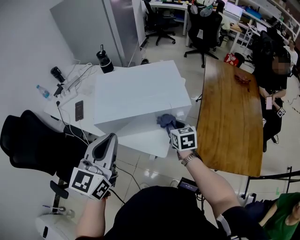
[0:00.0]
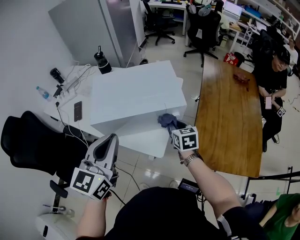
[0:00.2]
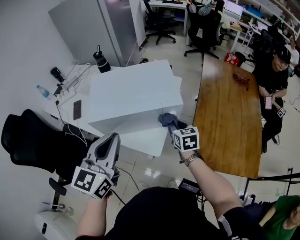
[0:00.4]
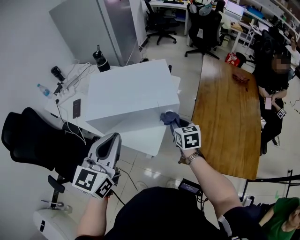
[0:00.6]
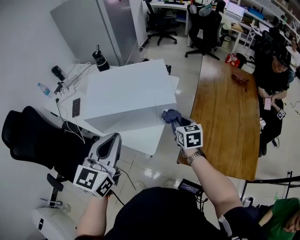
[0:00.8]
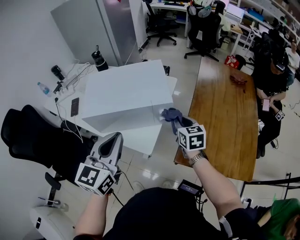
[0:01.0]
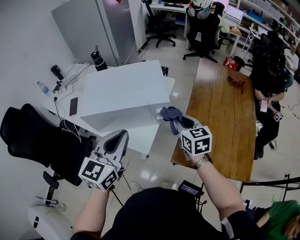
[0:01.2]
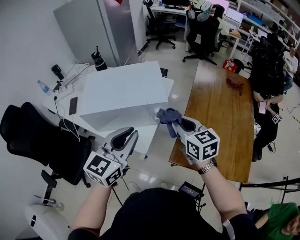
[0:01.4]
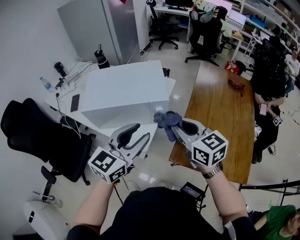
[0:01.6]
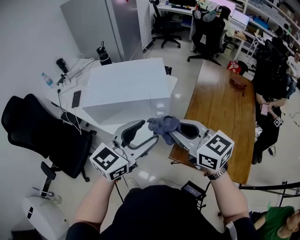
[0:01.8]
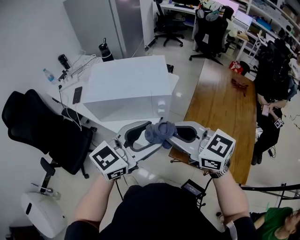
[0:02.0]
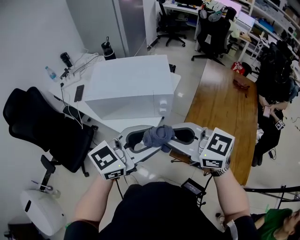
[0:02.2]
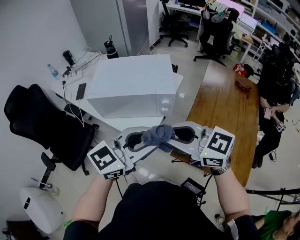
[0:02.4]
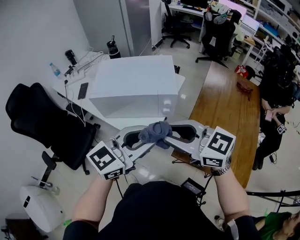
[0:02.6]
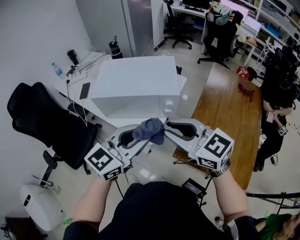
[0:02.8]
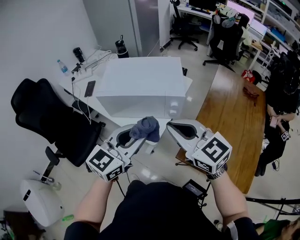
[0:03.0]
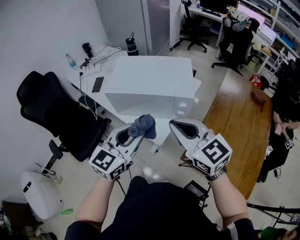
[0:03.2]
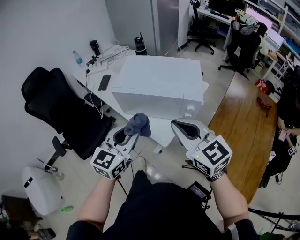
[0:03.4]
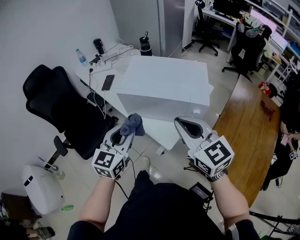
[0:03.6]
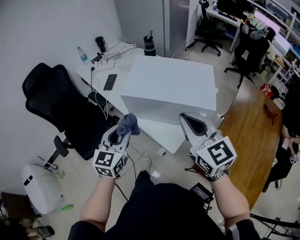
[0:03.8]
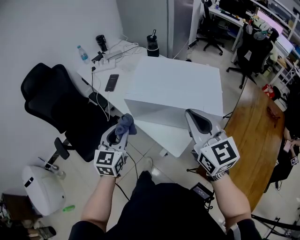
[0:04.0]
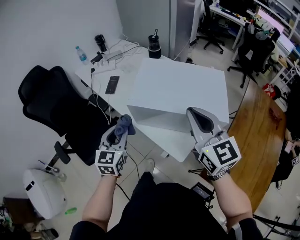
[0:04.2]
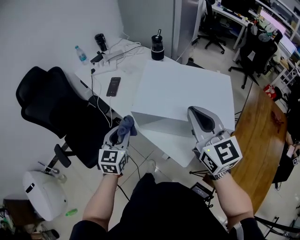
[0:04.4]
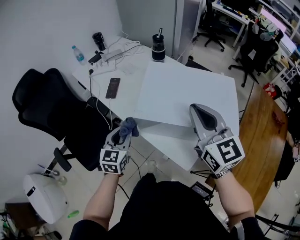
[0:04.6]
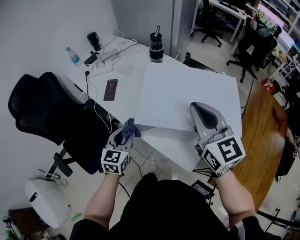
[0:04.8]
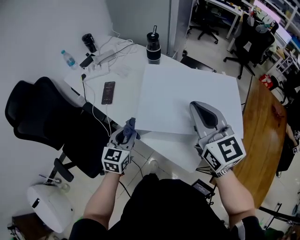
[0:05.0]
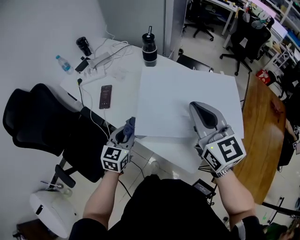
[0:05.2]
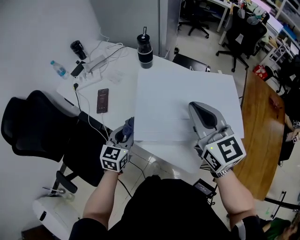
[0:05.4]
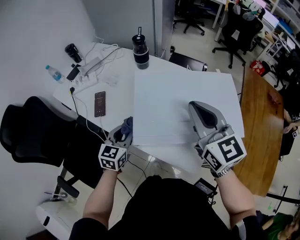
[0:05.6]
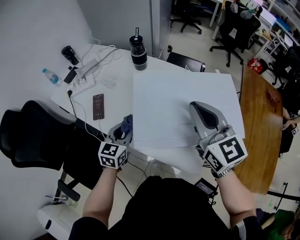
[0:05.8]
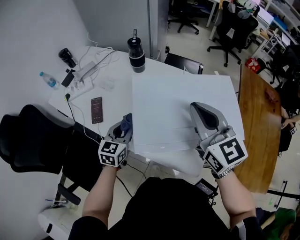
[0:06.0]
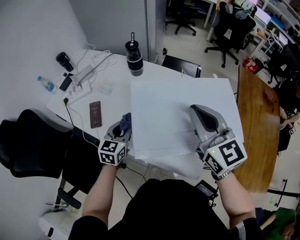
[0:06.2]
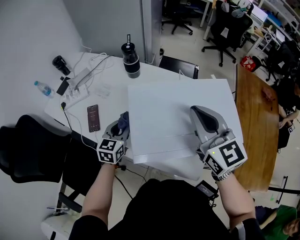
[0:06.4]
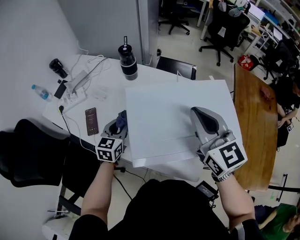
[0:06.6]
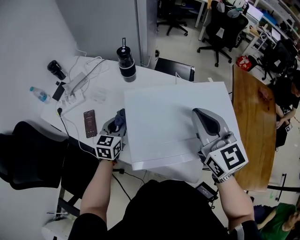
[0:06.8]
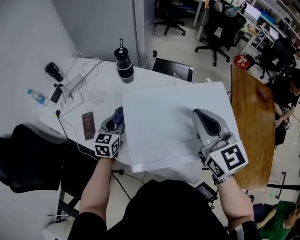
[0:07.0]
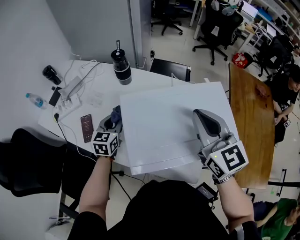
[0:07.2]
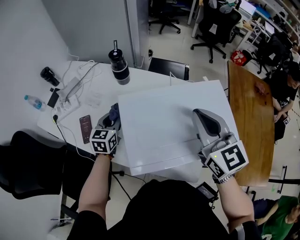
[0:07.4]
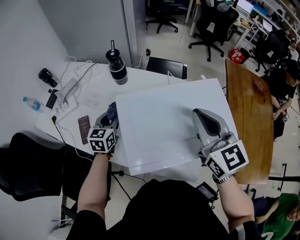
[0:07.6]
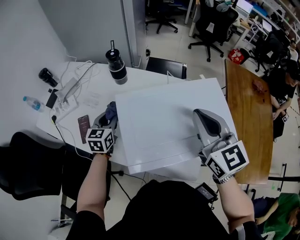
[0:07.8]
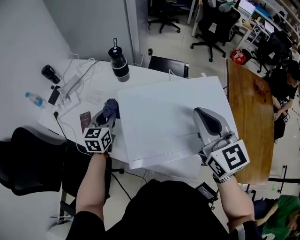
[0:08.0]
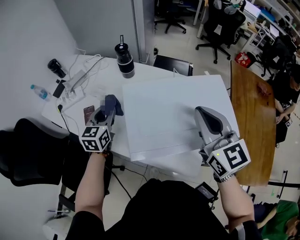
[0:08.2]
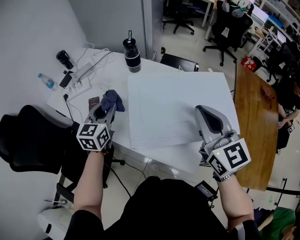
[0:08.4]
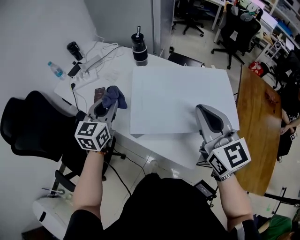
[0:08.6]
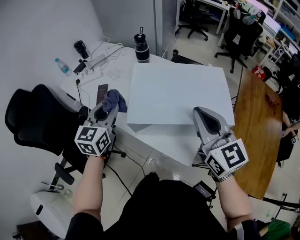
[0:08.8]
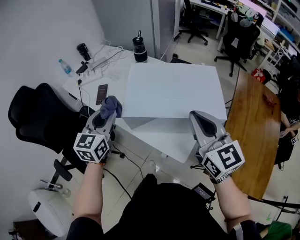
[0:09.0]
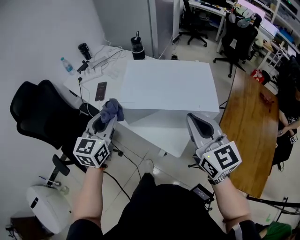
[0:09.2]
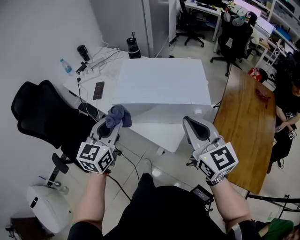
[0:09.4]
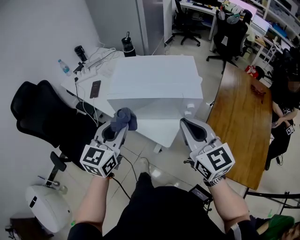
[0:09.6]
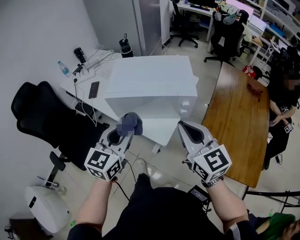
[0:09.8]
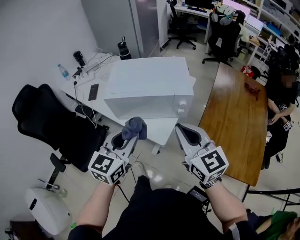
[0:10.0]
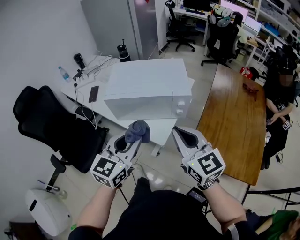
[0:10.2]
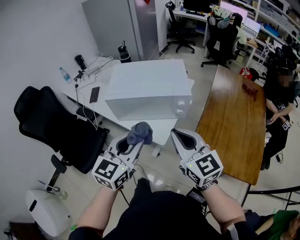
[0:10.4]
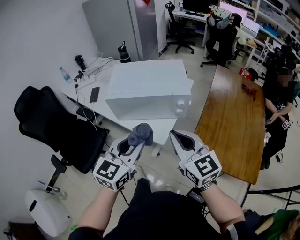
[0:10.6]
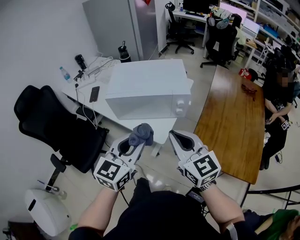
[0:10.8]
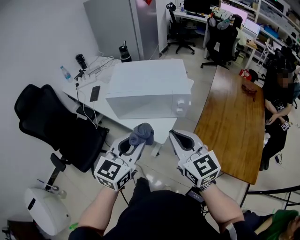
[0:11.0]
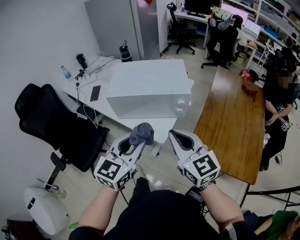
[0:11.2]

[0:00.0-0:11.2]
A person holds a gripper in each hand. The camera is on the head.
0.0 to 1.6 s: The left gripper goes about 20 cm to the right, and opens, while the right gripper moves upward, backward and to the right, roughly 20 cm, and changes its angle by some 30 degrees.
1.6 to 3.2 s: The right gripper moves some 10 cm, and turns by about 20 degrees. Meanwhile the left gripper moves roughly 10 cm, and opens, then closes again.
3.2 to 4.8 s: The left gripper heads forward, to the left and downward, covering some 40 cm, and turns by some 20 degrees; the right gripper heads forward, covering some 25 cm.
4.8 to 6.4 s: The left gripper heads forward, covering approximately 20 cm. Meanwhile the right gripper is displaced forward by about 10 cm.
6.4 to 8.0 s: The left gripper goes some 5 cm forward.
8.0 to 9.6 s: The right gripper heads backward, covering approximately 30 cm. The left gripper travels backward and upward by about 40 cm.
9.6 to 11.2 s: The left gripper heads backward and to the right, covering roughly 15 cm; the right gripper shifts roughly 10 cm backward.

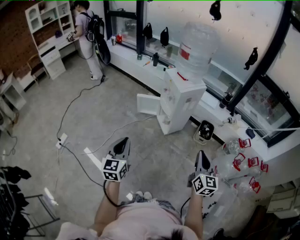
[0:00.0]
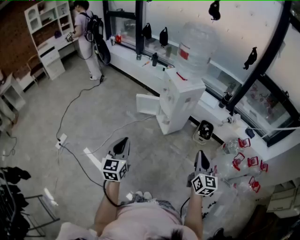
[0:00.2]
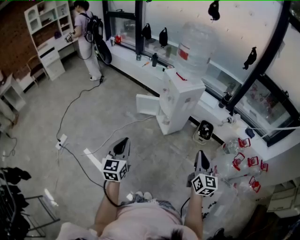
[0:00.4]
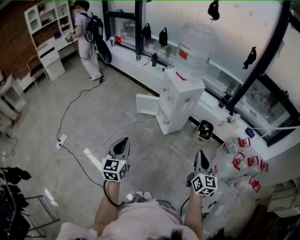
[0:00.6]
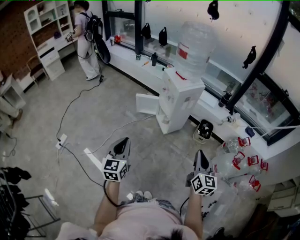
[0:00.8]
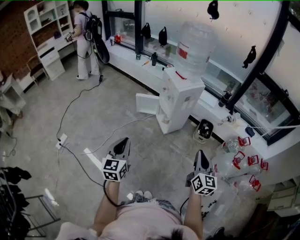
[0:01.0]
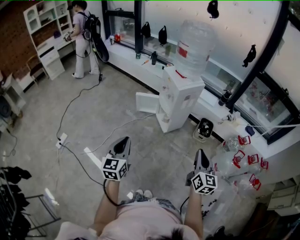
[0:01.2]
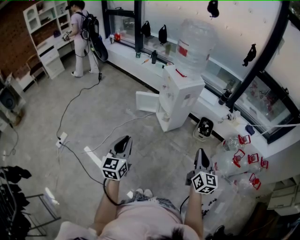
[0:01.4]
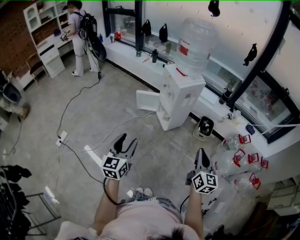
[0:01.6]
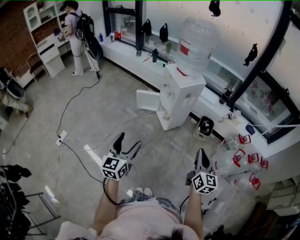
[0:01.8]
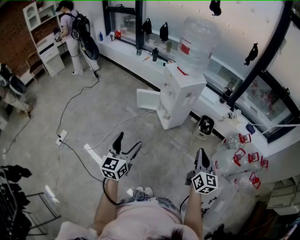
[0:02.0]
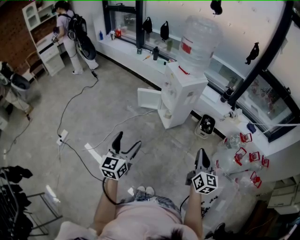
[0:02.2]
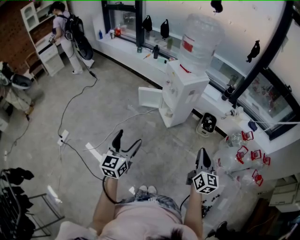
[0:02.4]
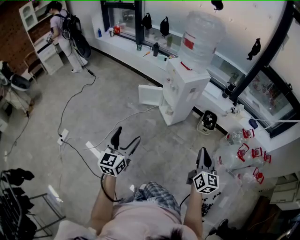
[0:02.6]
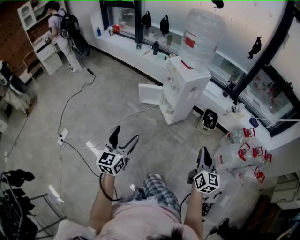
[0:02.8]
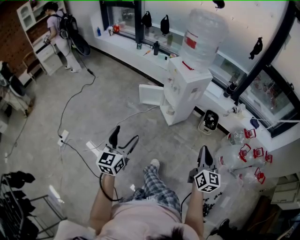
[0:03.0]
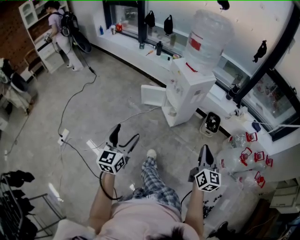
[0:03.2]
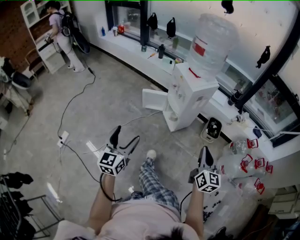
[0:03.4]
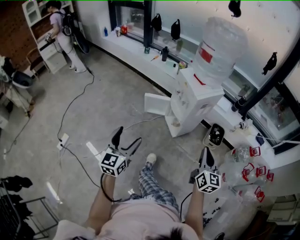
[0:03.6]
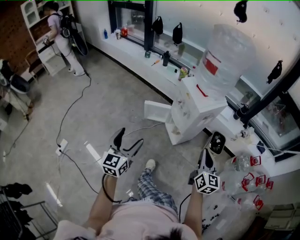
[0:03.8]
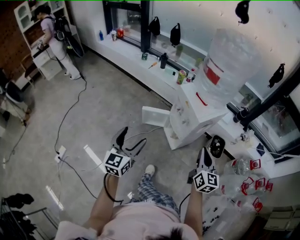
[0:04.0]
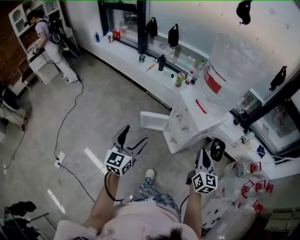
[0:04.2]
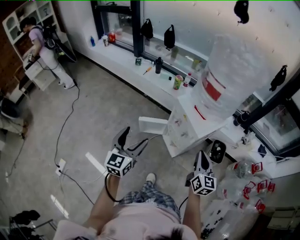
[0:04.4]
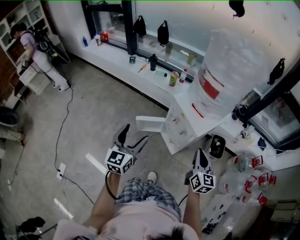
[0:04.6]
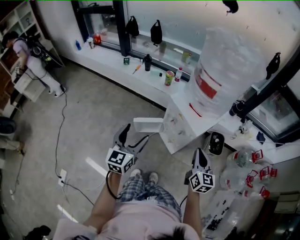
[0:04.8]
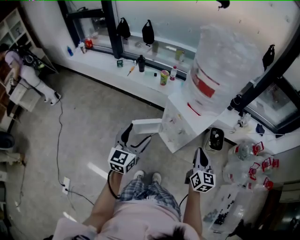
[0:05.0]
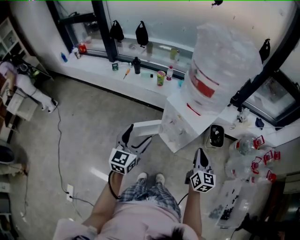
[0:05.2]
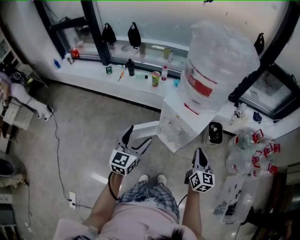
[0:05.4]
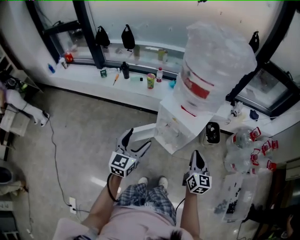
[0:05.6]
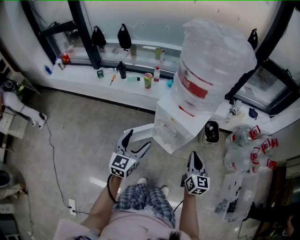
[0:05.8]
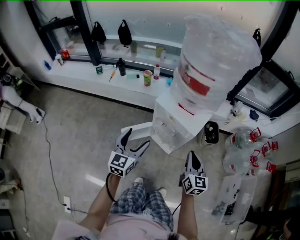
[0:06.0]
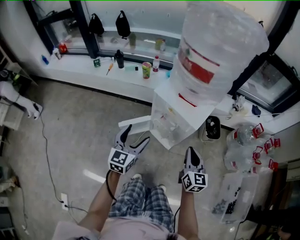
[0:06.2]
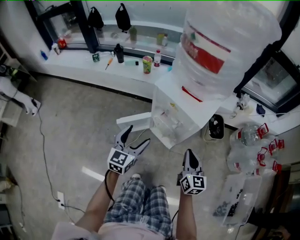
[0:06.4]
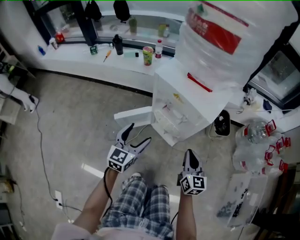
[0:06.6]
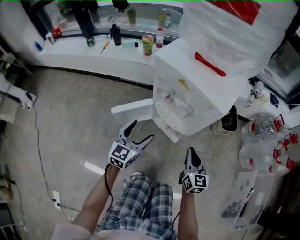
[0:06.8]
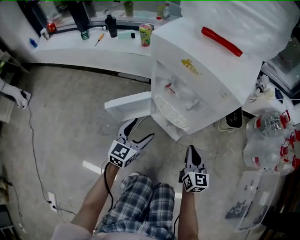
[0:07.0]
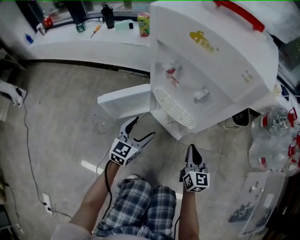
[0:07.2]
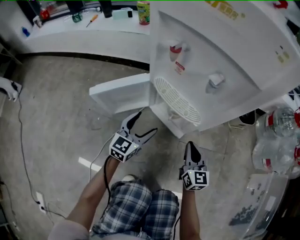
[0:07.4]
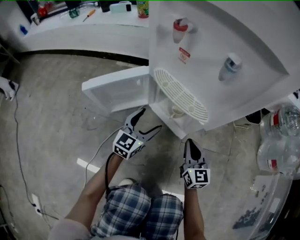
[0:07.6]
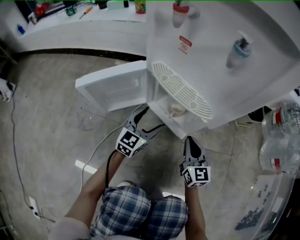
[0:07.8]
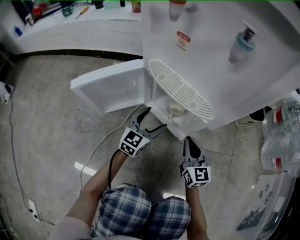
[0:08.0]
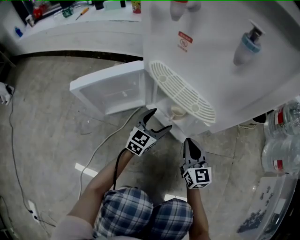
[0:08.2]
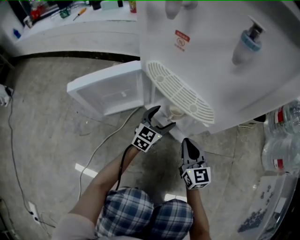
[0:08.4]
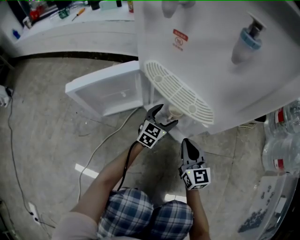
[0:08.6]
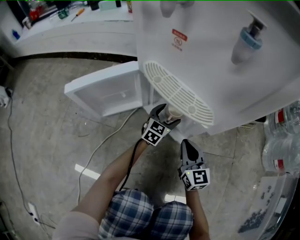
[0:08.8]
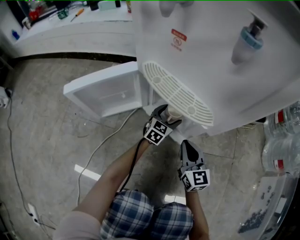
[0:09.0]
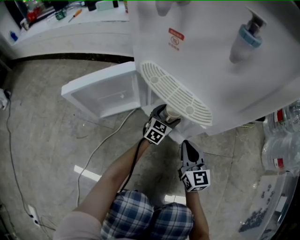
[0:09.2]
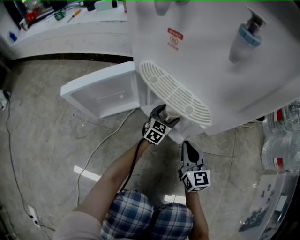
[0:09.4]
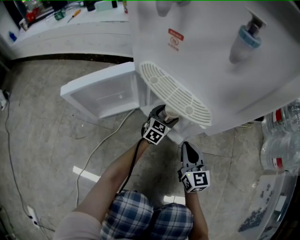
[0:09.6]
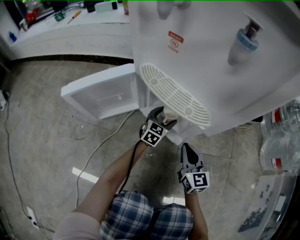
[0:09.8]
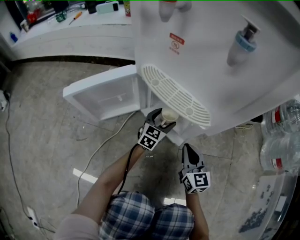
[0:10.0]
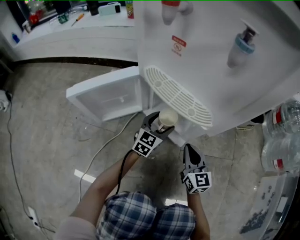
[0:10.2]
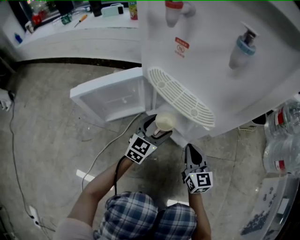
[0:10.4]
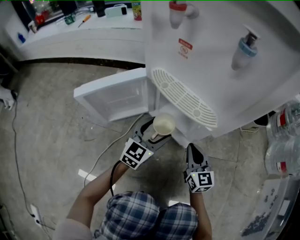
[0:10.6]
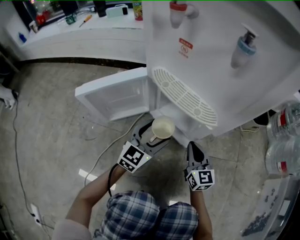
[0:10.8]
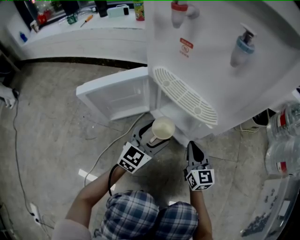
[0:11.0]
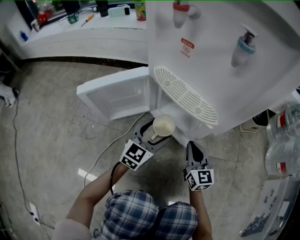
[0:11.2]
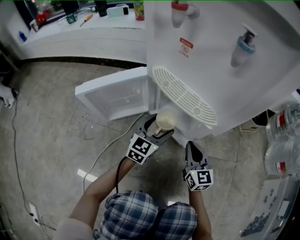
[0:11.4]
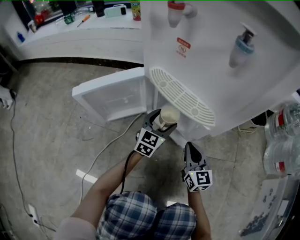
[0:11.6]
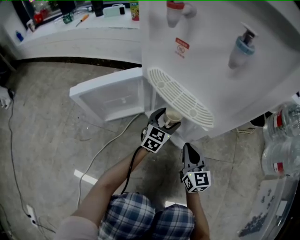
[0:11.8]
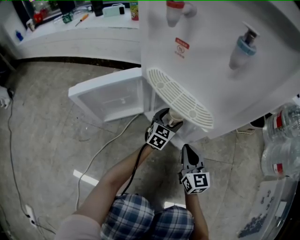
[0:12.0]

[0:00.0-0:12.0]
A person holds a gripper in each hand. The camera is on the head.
0.0 to 1.6 s: The left gripper opens up.
1.6 to 3.0 s: The left gripper travels to the left by about 5 cm, and opens up.
3.0 to 4.4 s: The two grippers travel together, forward, about 40 cm.
4.4 to 6.0 s: The right gripper shifts roughly 5 cm downward. The left gripper moves forward and downward, approximately 15 cm, and turns by roughly 20 degrees.
6.0 to 7.6 s: Both grippers travel together downward, roughly 60 cm.
7.6 to 9.0 s: The right gripper is displaced downward by about 5 cm. Meanwhile the left gripper travels downward, forward and to the right by approximately 25 cm.
9.0 to 10.4 s: The left gripper is displaced upward, backward and to the left by approximately 15 cm.
10.4 to 12.0 s: The left gripper heads forward, downward and to the right, covering roughly 10 cm.

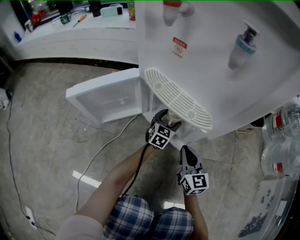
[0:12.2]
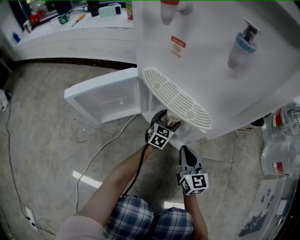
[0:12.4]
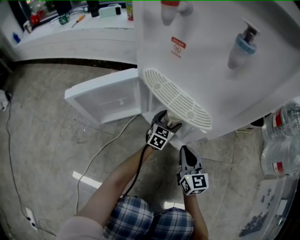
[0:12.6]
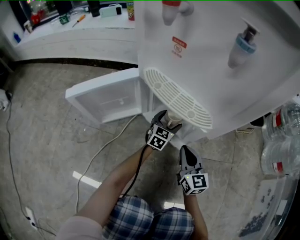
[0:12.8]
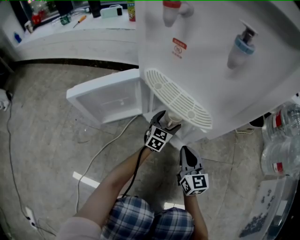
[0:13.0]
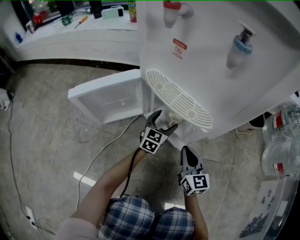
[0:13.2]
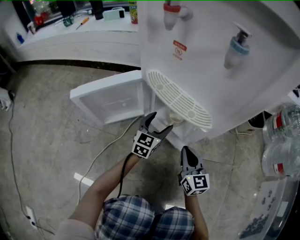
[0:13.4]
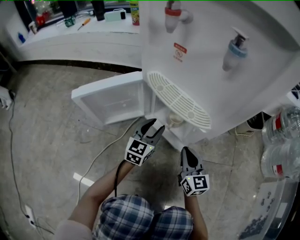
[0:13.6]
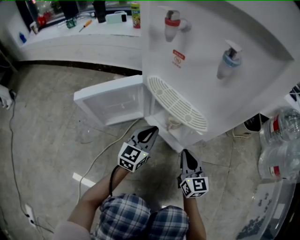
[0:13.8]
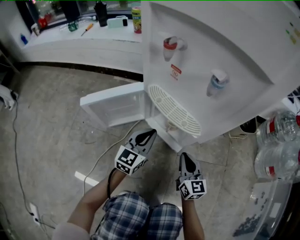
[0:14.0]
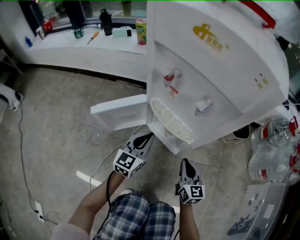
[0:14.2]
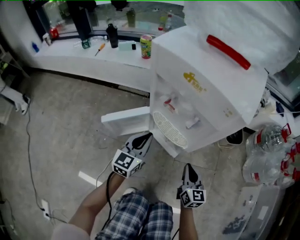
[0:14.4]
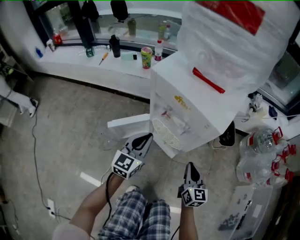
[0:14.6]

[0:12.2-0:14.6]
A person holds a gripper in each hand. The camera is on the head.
12.2 to 13.4 s: The left gripper is displaced upward, to the left and backward by roughly 10 cm.
13.4 to 14.6 s: Both grippers move upward, roughly 40 cm. The left gripper closes its fingers.
